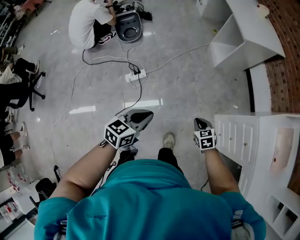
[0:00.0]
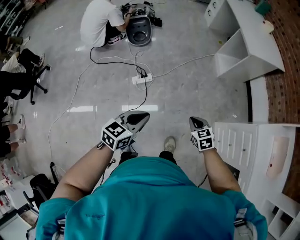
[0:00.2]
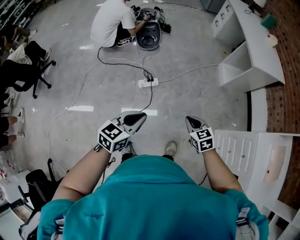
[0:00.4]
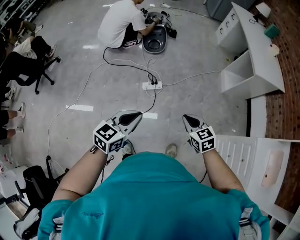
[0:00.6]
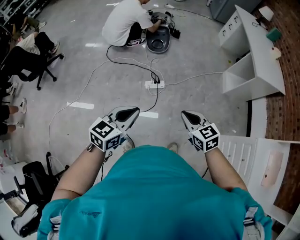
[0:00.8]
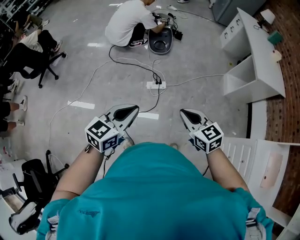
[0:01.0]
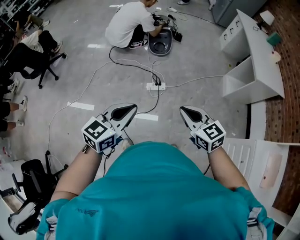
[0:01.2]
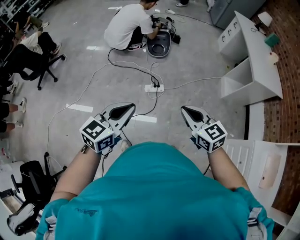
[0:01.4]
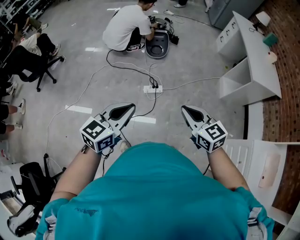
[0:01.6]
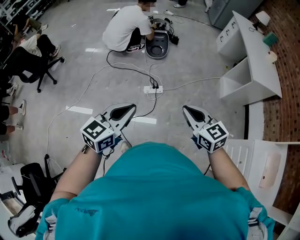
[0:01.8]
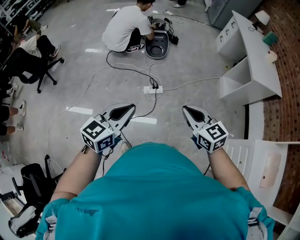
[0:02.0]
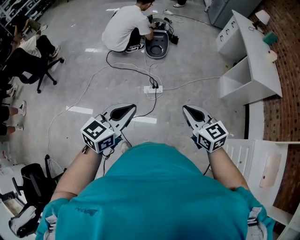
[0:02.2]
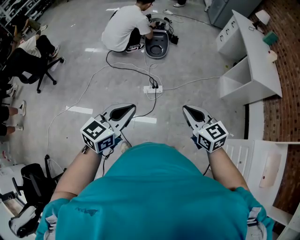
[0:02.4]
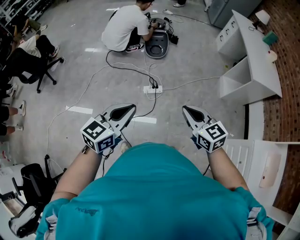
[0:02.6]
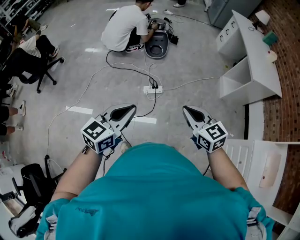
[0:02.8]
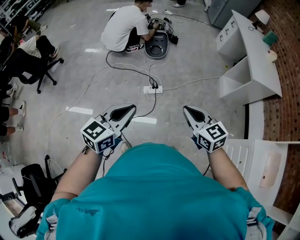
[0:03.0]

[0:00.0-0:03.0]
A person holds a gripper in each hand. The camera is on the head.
0:00.0 to 0:01.6: The left gripper moves approximately 30 cm, and changes its angle by roughly 30 degrees, while the right gripper heads upward, covering approximately 30 cm, and angles its fingers upward, by some 30 degrees.
0:01.6 to 0:03.0: The grippers stay close to where they were, moving slightly.

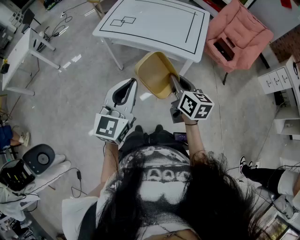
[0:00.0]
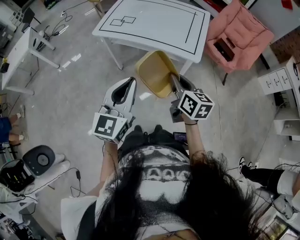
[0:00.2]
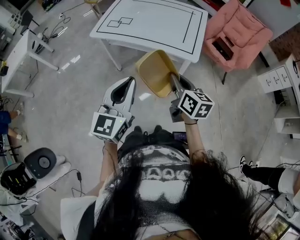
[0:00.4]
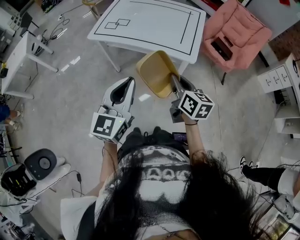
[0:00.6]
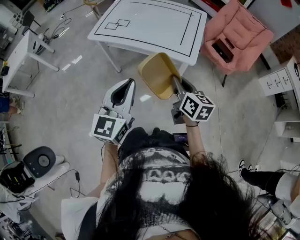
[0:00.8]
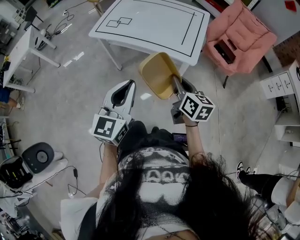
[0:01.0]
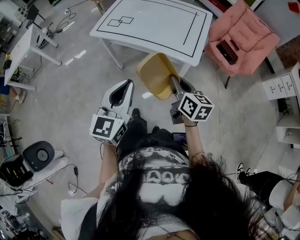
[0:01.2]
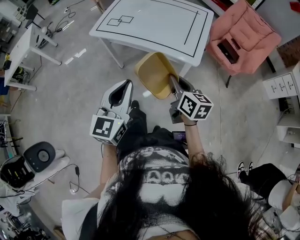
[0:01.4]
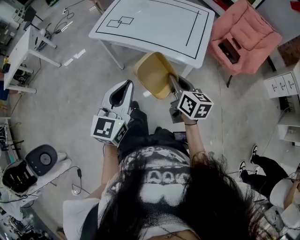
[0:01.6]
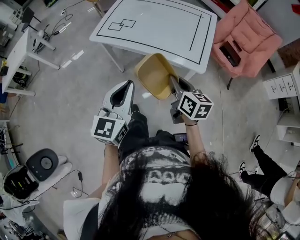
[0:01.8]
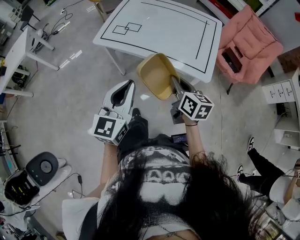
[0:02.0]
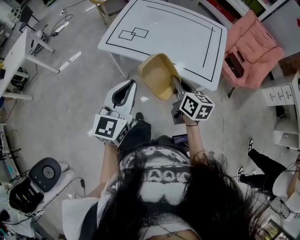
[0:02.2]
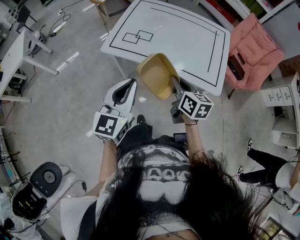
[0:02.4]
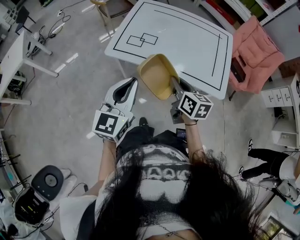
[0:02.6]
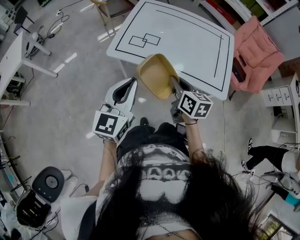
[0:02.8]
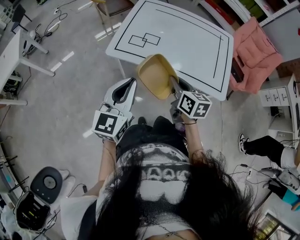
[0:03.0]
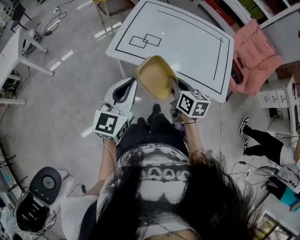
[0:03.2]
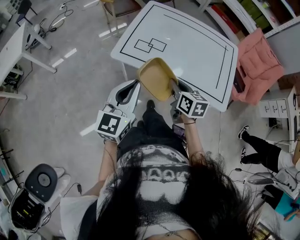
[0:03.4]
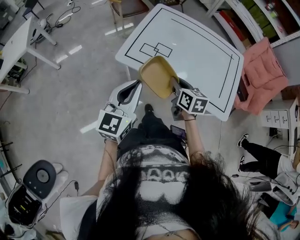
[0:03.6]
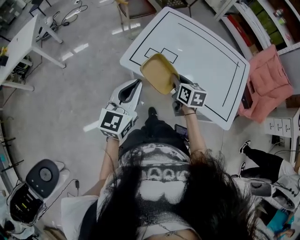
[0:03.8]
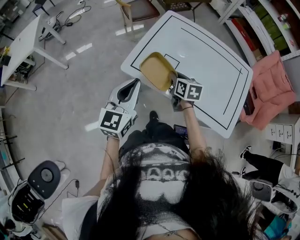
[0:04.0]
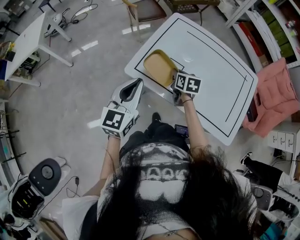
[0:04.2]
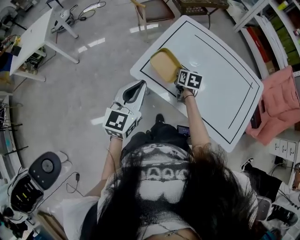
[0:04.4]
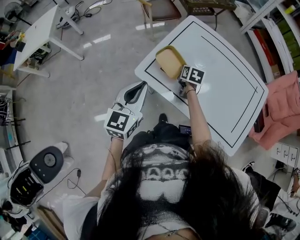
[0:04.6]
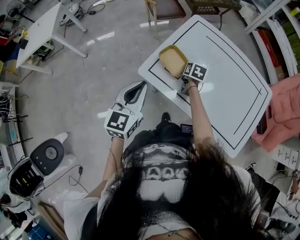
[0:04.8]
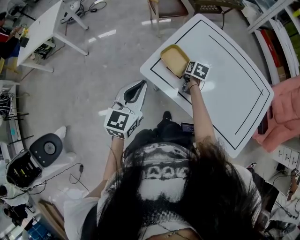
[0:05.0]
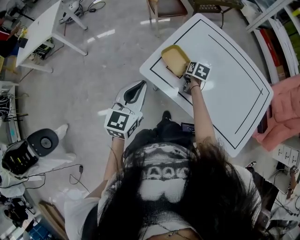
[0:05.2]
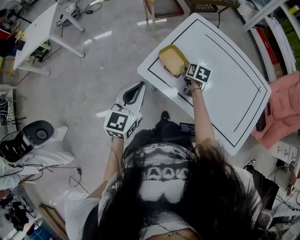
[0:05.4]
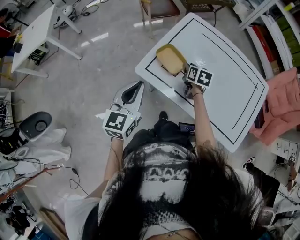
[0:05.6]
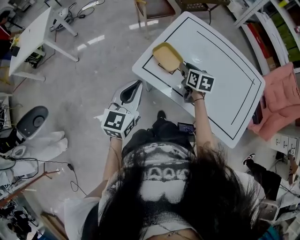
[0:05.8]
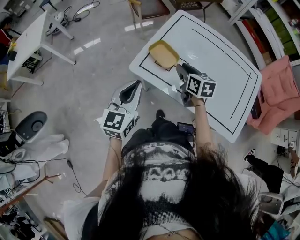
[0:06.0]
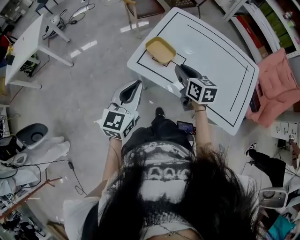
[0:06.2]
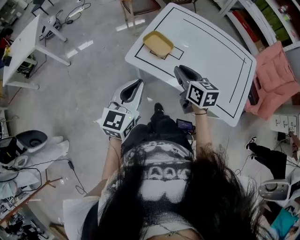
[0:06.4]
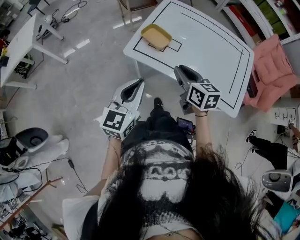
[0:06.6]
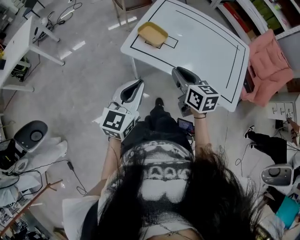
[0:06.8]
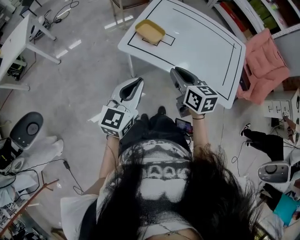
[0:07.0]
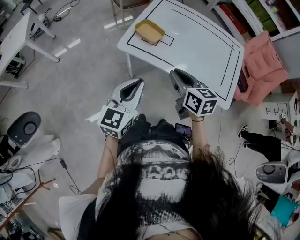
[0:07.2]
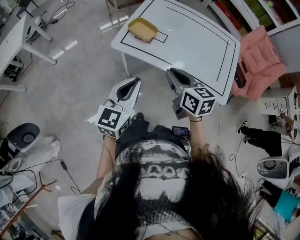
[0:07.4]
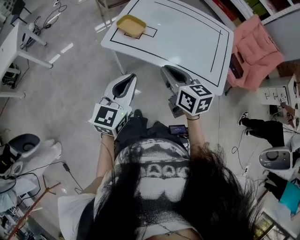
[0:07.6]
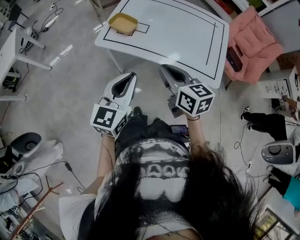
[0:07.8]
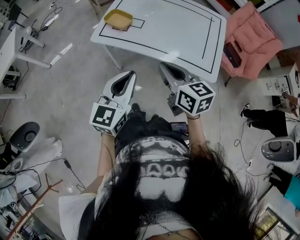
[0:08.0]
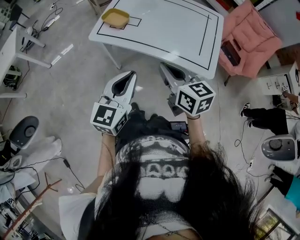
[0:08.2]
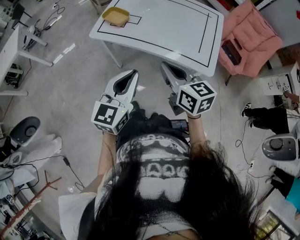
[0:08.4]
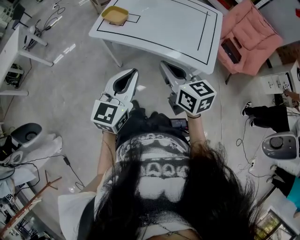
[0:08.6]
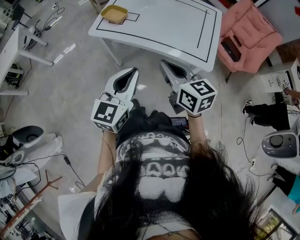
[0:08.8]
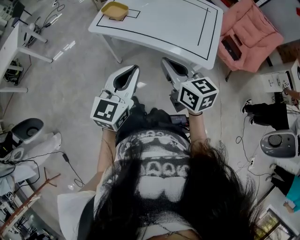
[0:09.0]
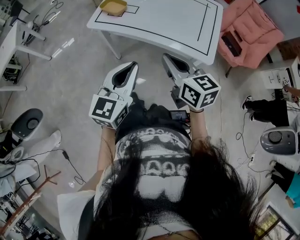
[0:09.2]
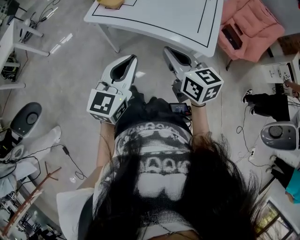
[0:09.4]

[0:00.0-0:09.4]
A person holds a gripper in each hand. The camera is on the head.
0:00.0 to 0:01.6: Both grippers travel together forward, approximately 10 cm.
0:01.6 to 0:03.2: Both grippers travel together to the left and forward, approximately 35 cm.
0:03.2 to 0:04.8: The left gripper shifts some 25 cm forward and to the left; the right gripper heads forward, covering about 35 cm, and rotates approximately 20 degrees.
0:04.8 to 0:06.2: The left gripper moves backward, some 5 cm. Meanwhile the right gripper goes approximately 20 cm backward and upward, and turns by approximately 30 degrees.
0:06.2 to 0:07.8: The left gripper moves backward and to the right, roughly 20 cm. The right gripper shifts approximately 25 cm backward.
0:07.8 to 0:09.4: The two grippers go roughly 15 cm backward and to the right.

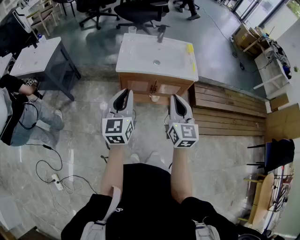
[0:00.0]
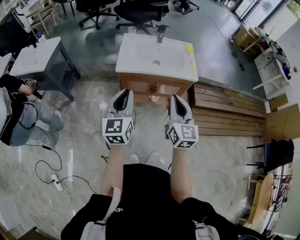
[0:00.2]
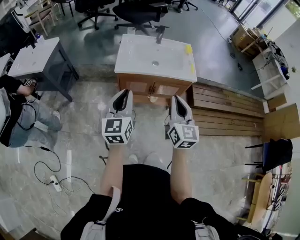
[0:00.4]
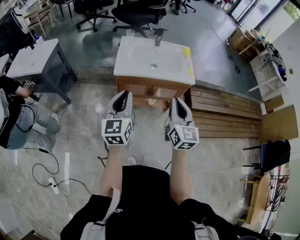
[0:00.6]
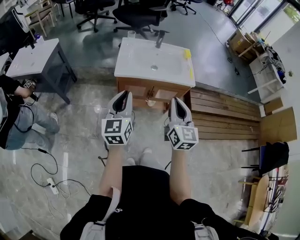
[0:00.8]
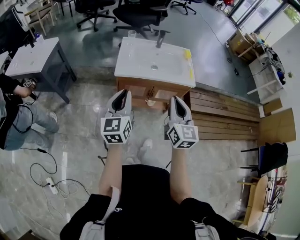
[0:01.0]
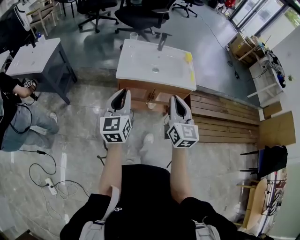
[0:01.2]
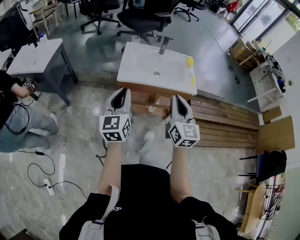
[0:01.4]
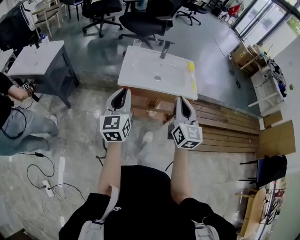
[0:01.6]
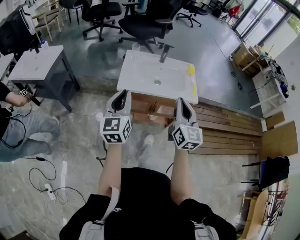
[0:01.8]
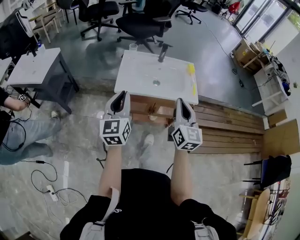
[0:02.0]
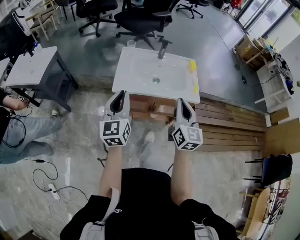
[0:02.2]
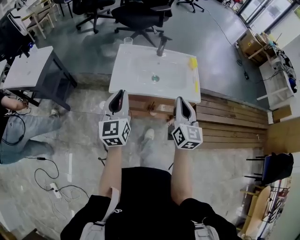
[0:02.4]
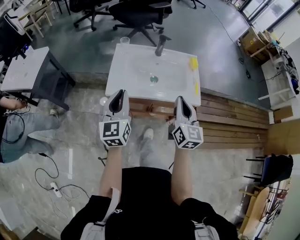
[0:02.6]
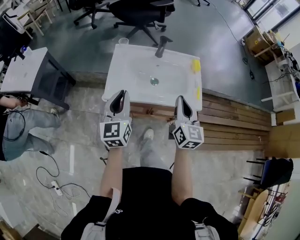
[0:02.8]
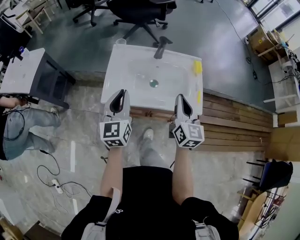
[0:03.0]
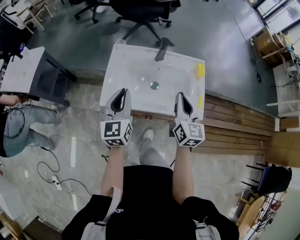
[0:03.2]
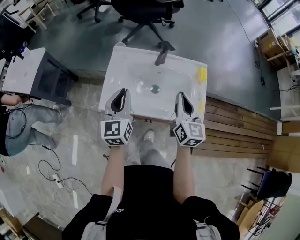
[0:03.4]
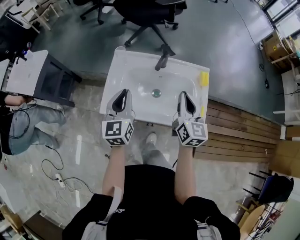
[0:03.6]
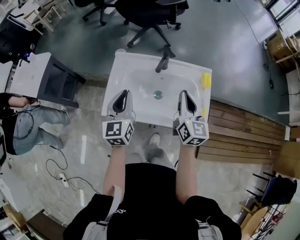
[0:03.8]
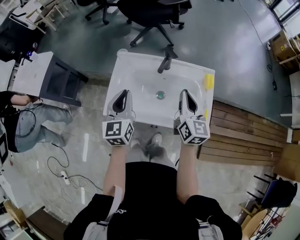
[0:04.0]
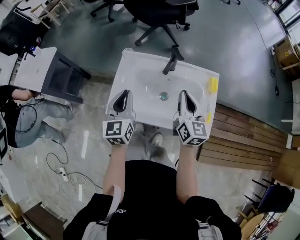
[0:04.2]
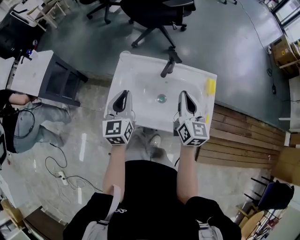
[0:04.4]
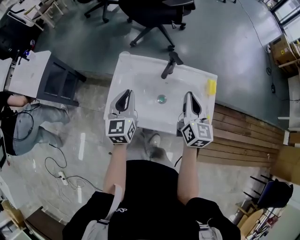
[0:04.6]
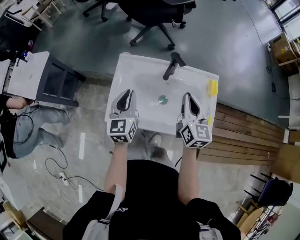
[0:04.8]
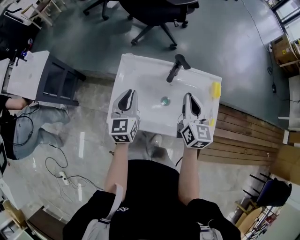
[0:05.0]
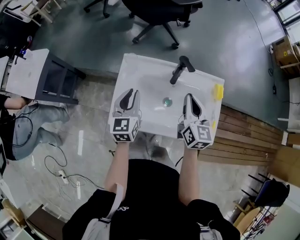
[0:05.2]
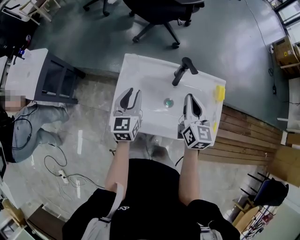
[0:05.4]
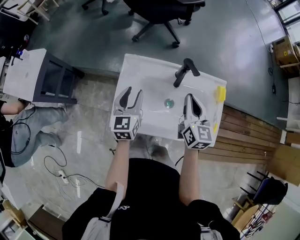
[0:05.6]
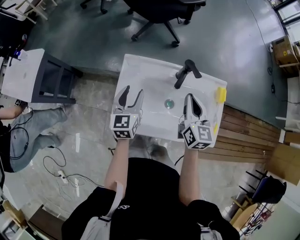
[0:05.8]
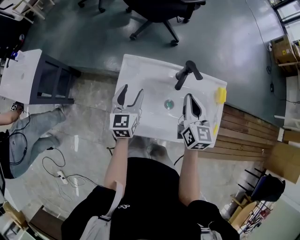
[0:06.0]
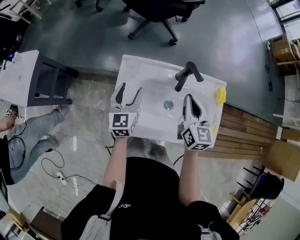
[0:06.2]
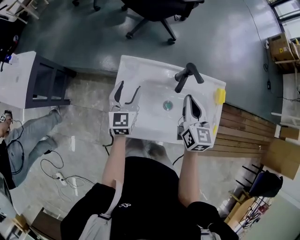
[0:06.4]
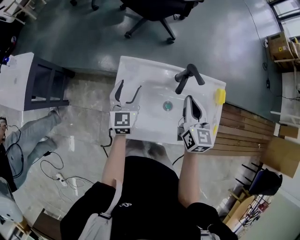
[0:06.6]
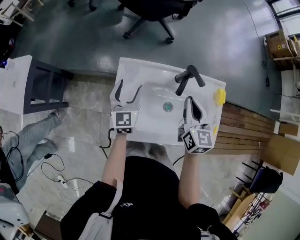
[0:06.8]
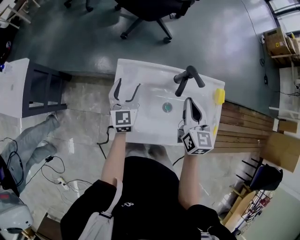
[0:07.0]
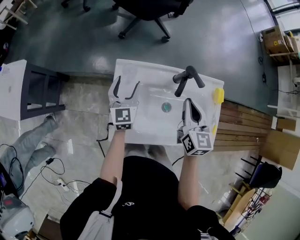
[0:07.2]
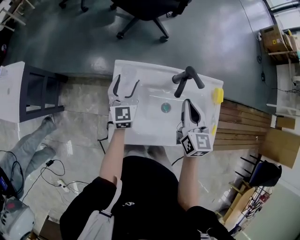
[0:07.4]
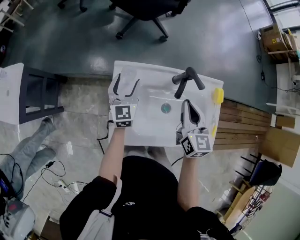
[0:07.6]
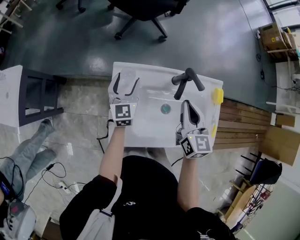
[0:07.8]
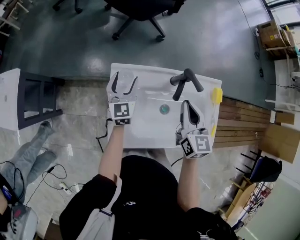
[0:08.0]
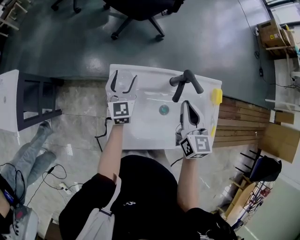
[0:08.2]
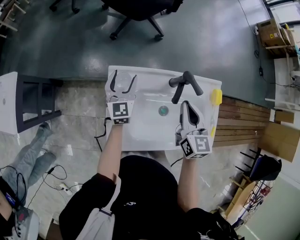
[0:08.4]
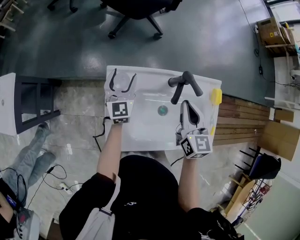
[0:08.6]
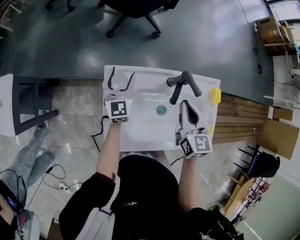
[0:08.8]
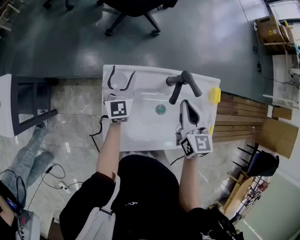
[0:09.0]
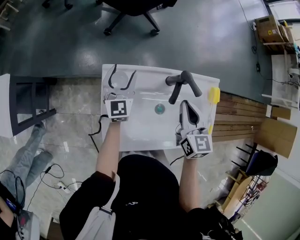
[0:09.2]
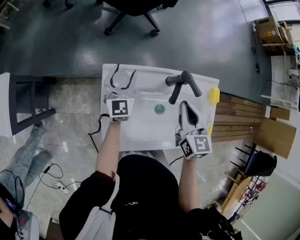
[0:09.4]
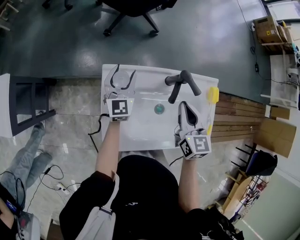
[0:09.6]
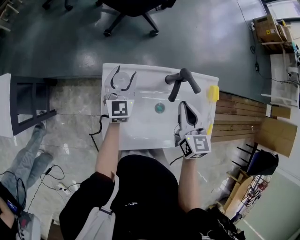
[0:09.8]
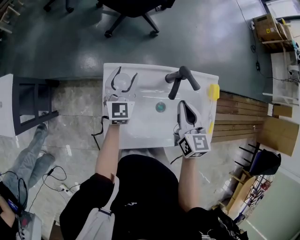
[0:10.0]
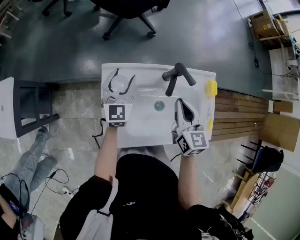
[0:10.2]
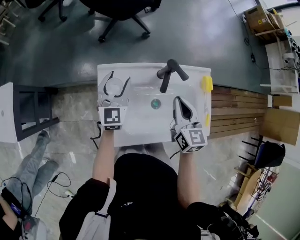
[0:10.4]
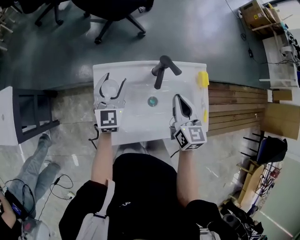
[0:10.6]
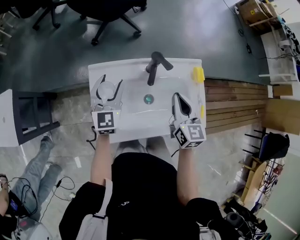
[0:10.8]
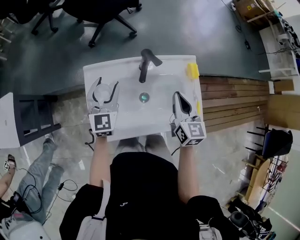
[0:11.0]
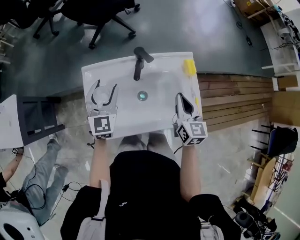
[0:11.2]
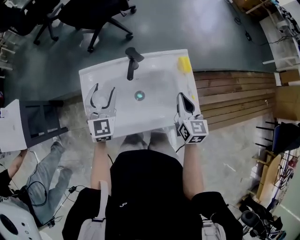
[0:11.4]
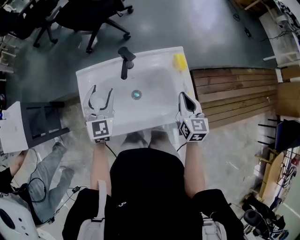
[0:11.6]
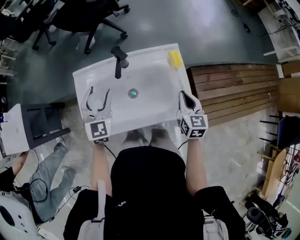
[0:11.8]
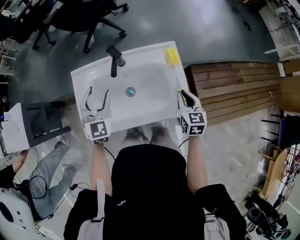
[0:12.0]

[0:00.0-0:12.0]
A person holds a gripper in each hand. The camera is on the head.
0:00.0 to 0:01.6: Both grippers move forward, about 5 cm.
0:01.6 to 0:03.0: Both grippers travel together forward, approximately 25 cm.
0:03.0 to 0:04.4: The grippers both shift forward by approximately 15 cm.
0:04.4 to 0:06.0: The right gripper goes roughly 5 cm forward, while the left gripper shifts roughly 15 cm forward and downward, and opens.
0:06.0 to 0:07.6: The left gripper shifts some 10 cm forward.
0:07.6 to 0:09.0: The left gripper heads forward, covering some 5 cm.
0:09.0 to 0:10.4: The left gripper moves upward and backward, some 5 cm.
0:10.4 to 0:12.0: The left gripper goes roughly 15 cm to the right, backward and upward. Meanwhile the right gripper is displaced to the right by some 25 cm.
